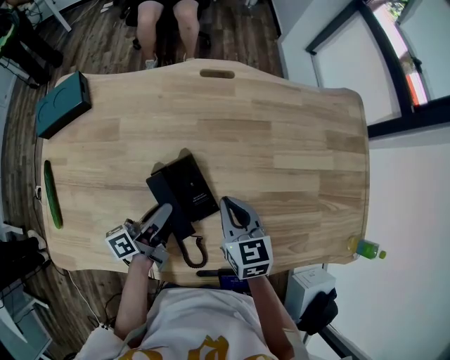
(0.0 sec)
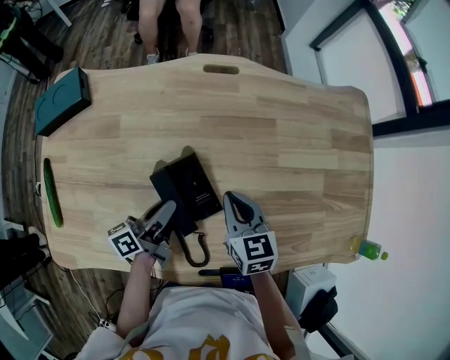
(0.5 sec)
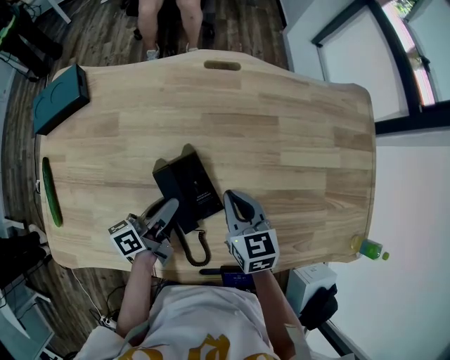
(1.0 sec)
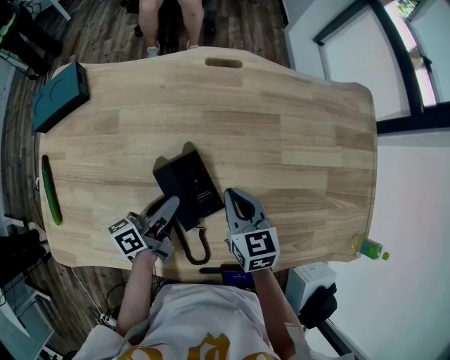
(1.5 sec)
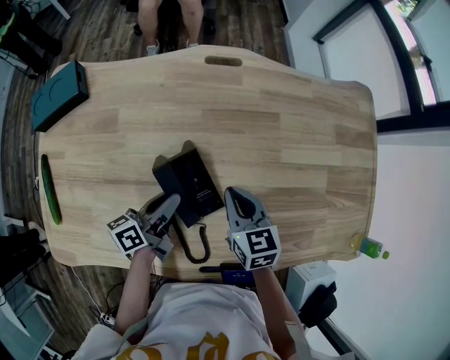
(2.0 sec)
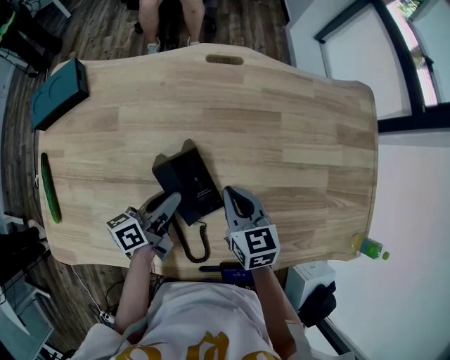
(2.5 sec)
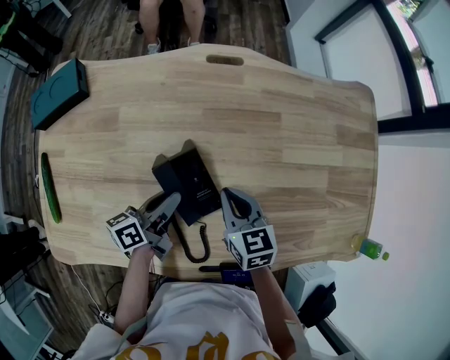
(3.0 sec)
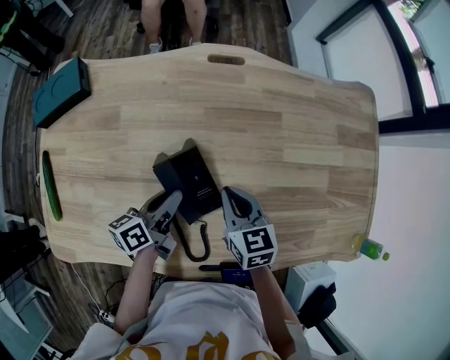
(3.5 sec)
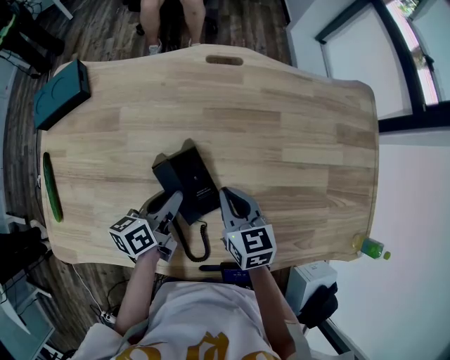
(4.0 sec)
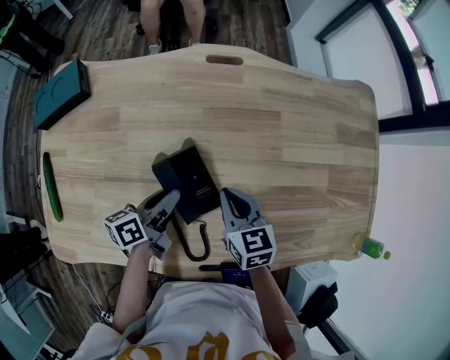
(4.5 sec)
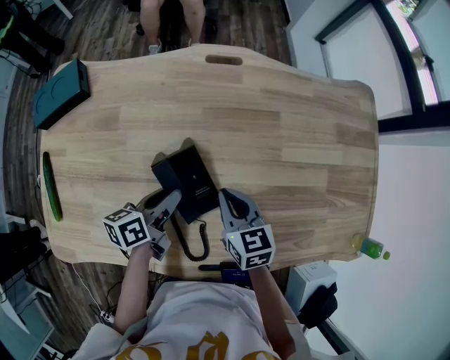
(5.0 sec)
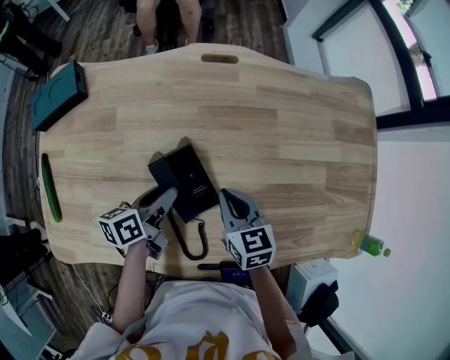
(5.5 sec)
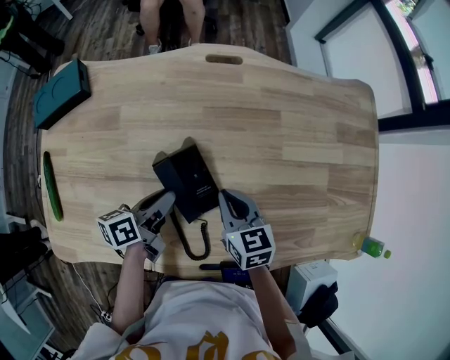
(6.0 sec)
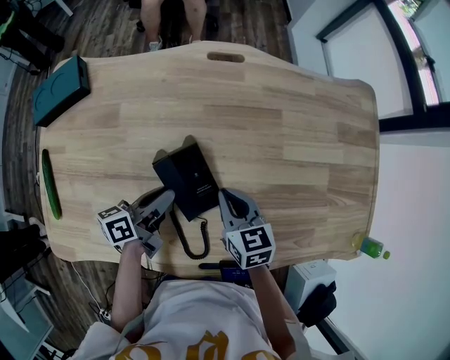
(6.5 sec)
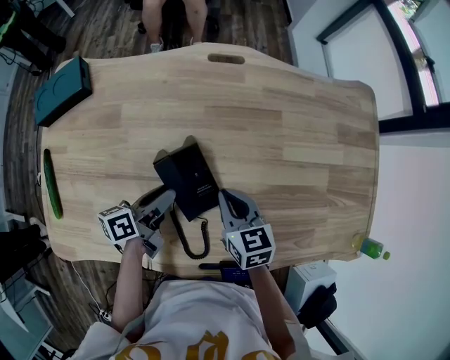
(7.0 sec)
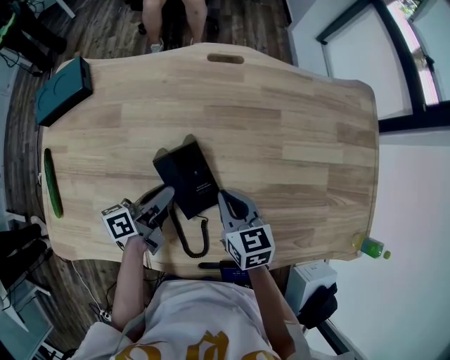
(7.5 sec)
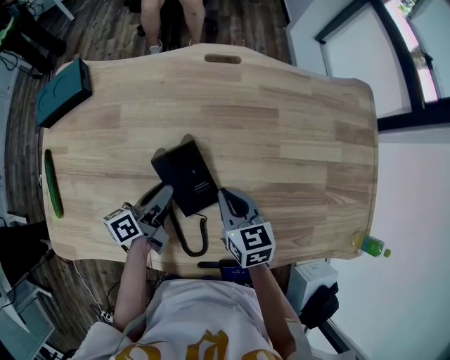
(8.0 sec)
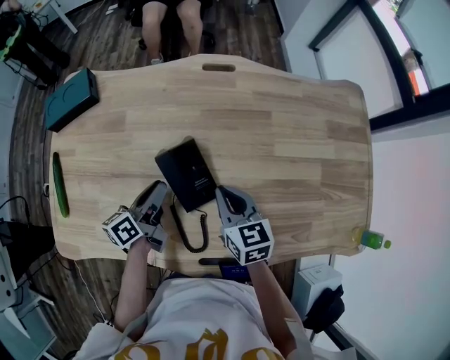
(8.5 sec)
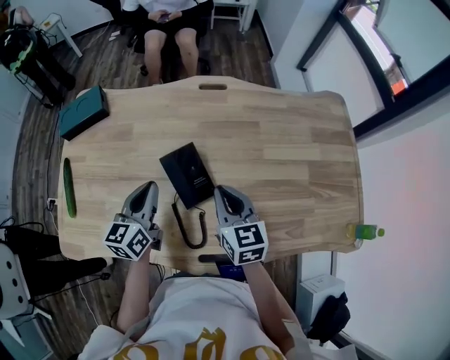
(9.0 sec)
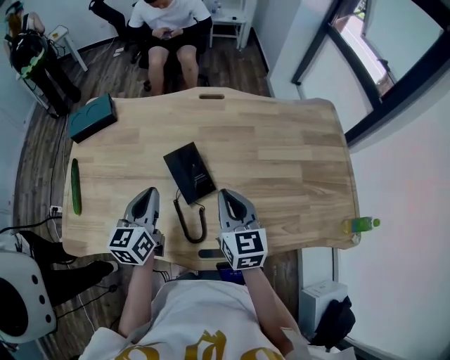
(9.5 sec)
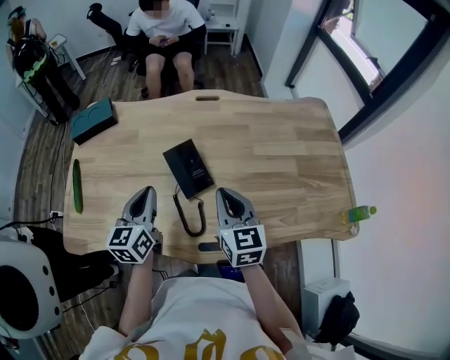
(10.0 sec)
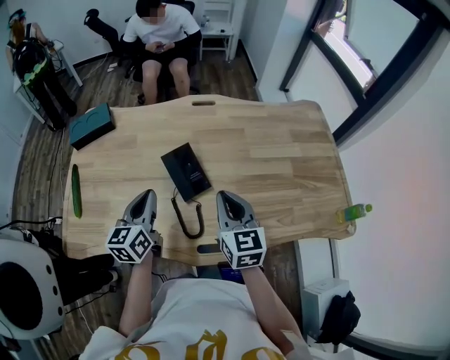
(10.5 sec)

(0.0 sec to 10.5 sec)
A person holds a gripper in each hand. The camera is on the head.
0.0 sec - 2.0 sec: There are only small adjustments of the grippers.
2.0 sec - 8.5 sec: The grippers move only a little.
8.5 sec - 10.5 sec: Both grippers travel together upward and backward, approximately 15 cm. The left gripper changes its angle by some 40 degrees, and closes up. Meanwhile the right gripper rotates approximately 20 degrees.

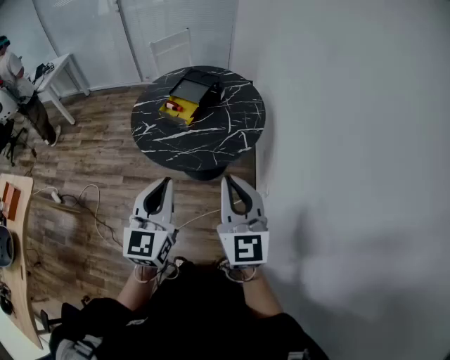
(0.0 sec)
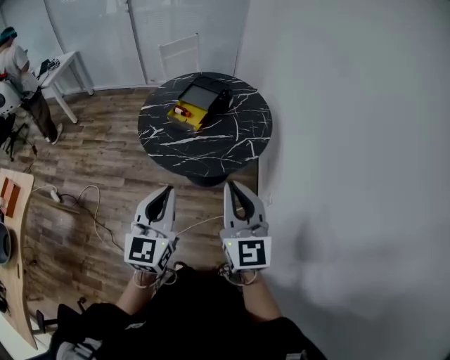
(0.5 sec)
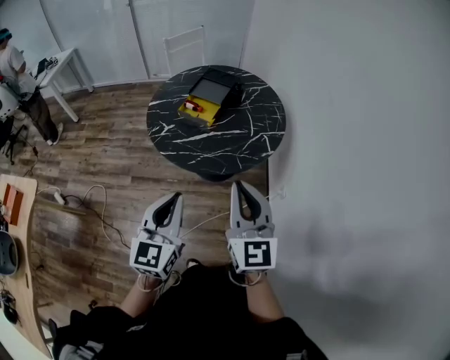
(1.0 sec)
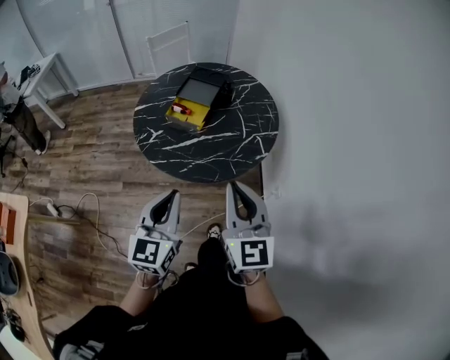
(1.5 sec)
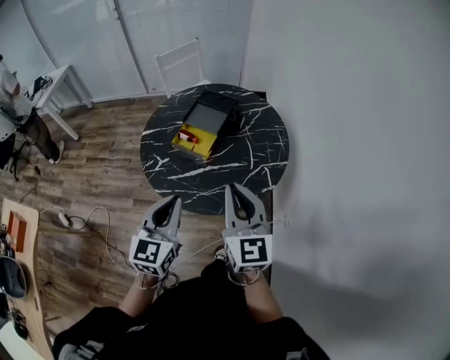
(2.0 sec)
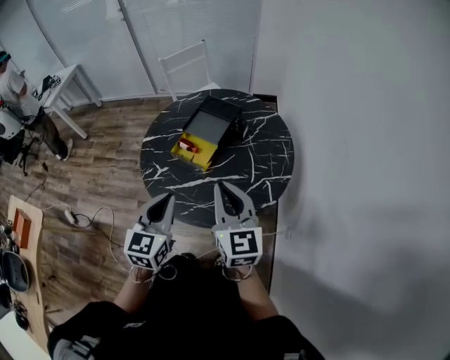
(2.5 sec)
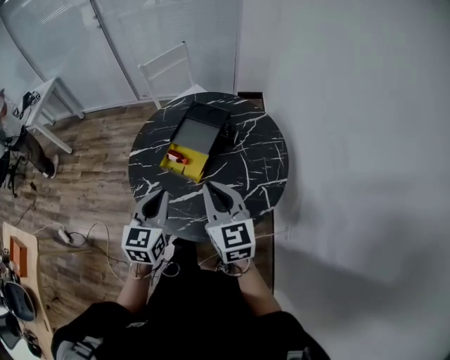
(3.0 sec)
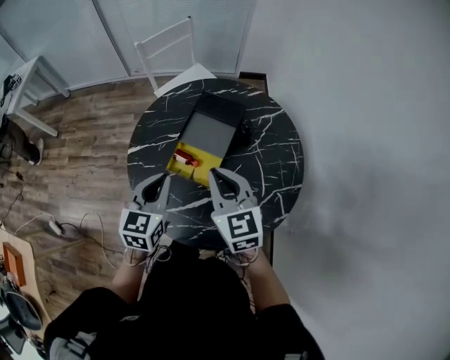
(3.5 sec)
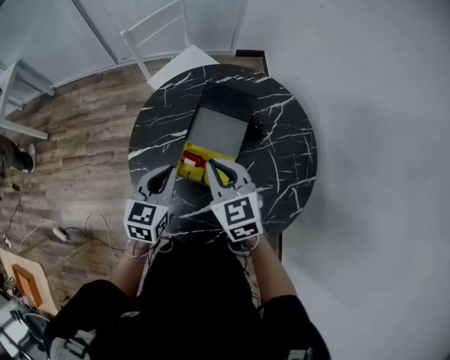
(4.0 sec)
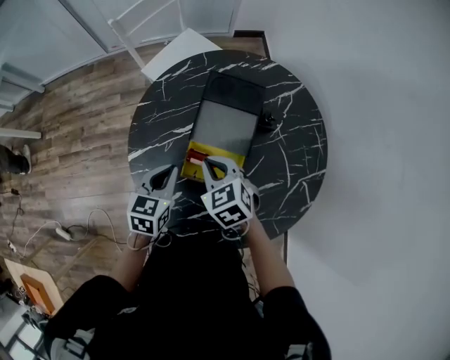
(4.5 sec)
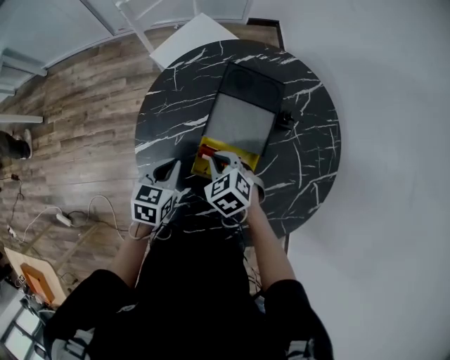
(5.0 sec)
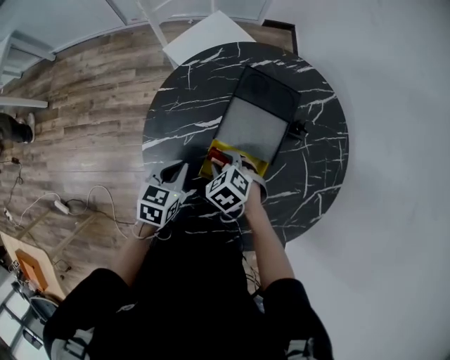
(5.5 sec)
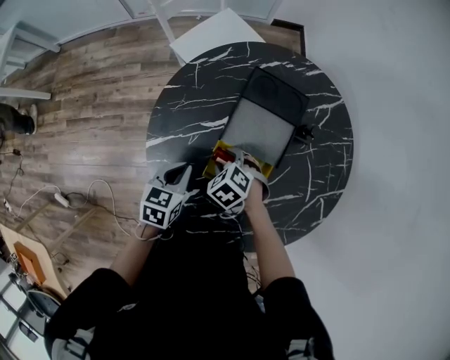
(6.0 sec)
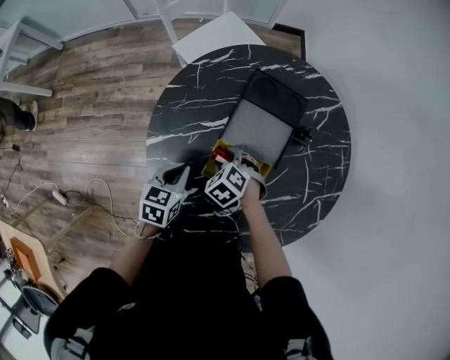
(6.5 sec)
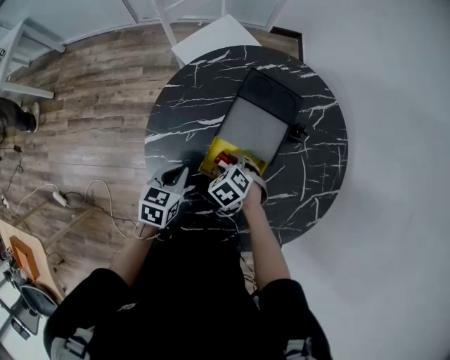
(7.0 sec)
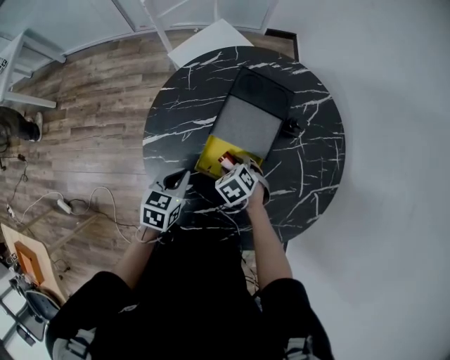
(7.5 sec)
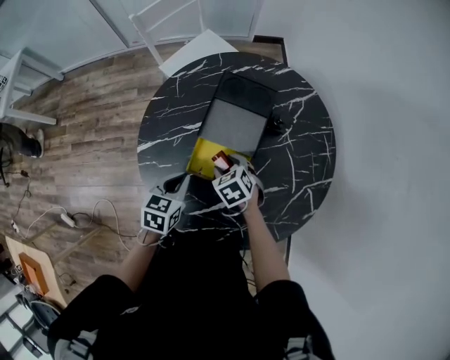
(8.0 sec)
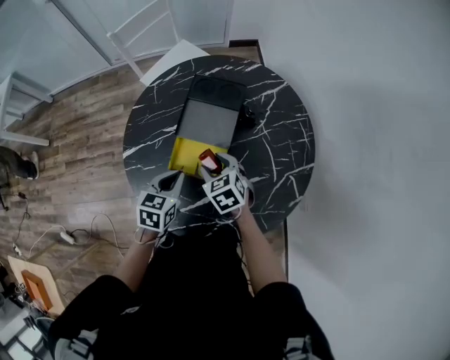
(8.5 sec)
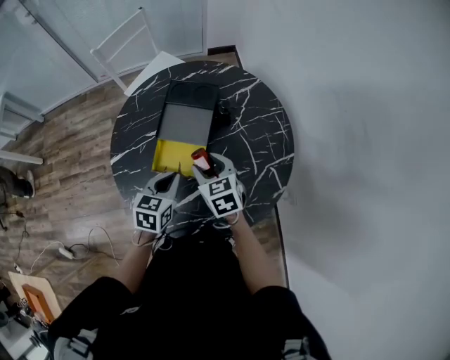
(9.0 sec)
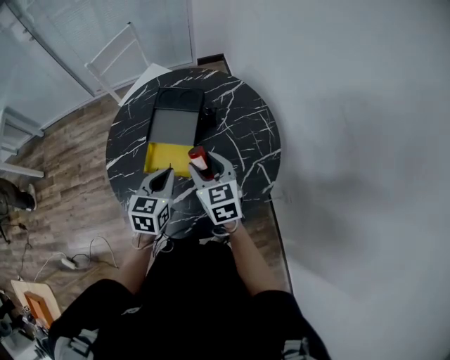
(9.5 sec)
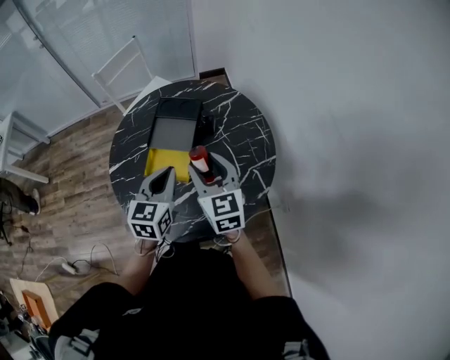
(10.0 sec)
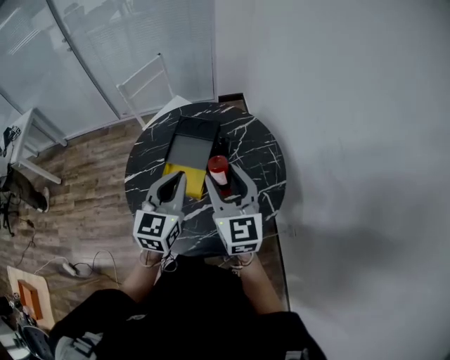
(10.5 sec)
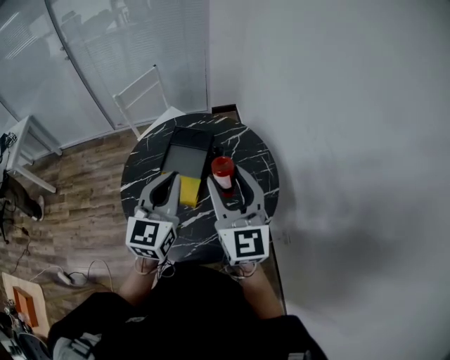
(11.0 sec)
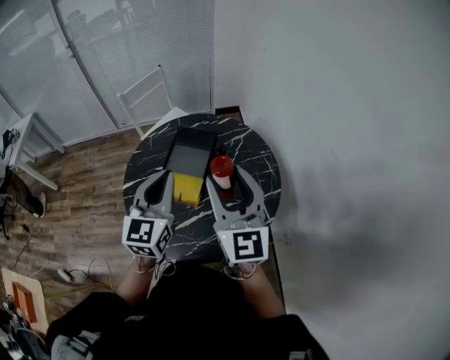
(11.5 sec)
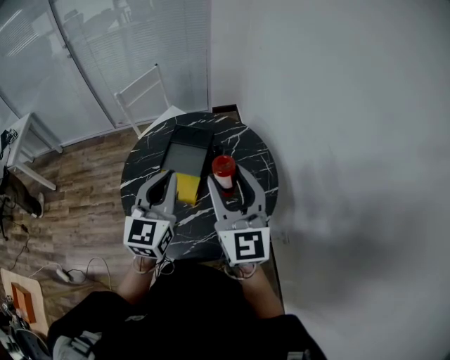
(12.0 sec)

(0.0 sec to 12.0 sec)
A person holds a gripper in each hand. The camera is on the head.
0.0 sec - 2.0 sec: The grippers both shift forward and to the left by about 20 cm.
2.0 sec - 4.0 sec: The left gripper travels forward and downward by approximately 40 cm, and rotates roughly 20 degrees. Meanwhile the right gripper shifts approximately 40 cm forward, downward and to the left, and changes its angle by roughly 30 degrees.
4.0 sec - 6.0 sec: The left gripper travels downward and to the left by some 15 cm, and turns by approximately 20 degrees, while the right gripper shifts some 25 cm downward, points its fingers about 40 degrees further downward, and opens up.
6.0 sec - 8.0 sec: Both grippers travel together to the right, roughly 5 cm.
8.0 sec - 10.0 sec: The two grippers go about 30 cm upward and to the right. The left gripper rotates approximately 30 degrees; the right gripper tilts its fingers about 50 degrees upward.
10.0 sec - 12.0 sec: The two grippers go roughly 15 cm upward. The left gripper rotates about 20 degrees. Meanwhile the right gripper rotates some 20 degrees.

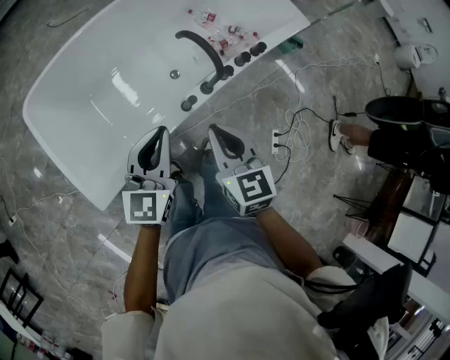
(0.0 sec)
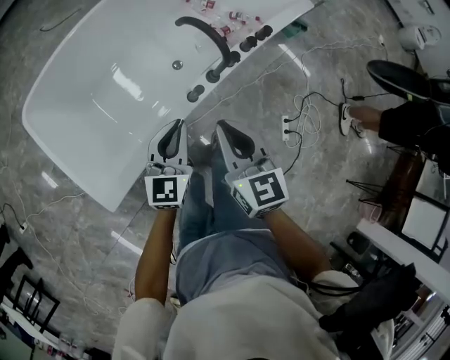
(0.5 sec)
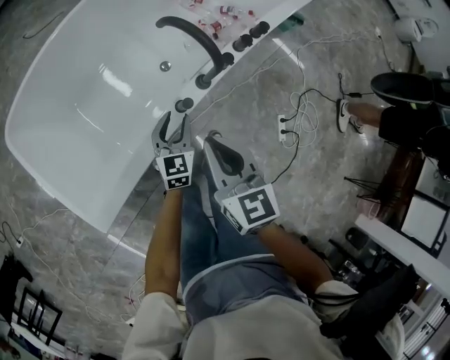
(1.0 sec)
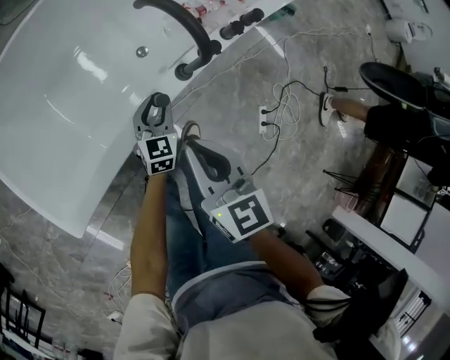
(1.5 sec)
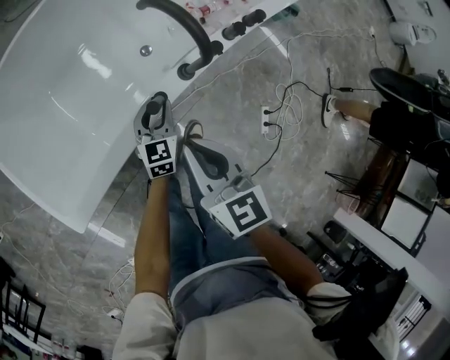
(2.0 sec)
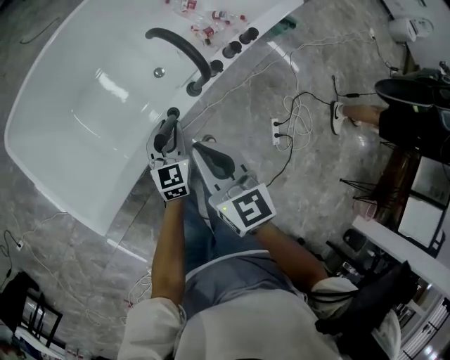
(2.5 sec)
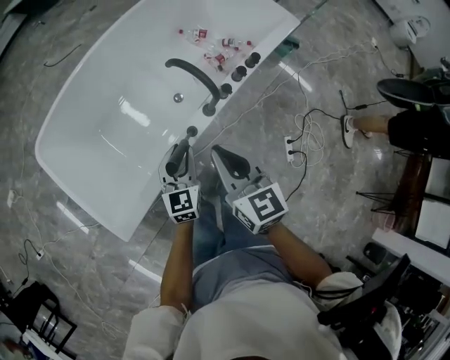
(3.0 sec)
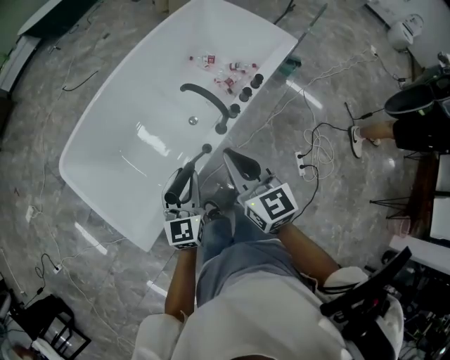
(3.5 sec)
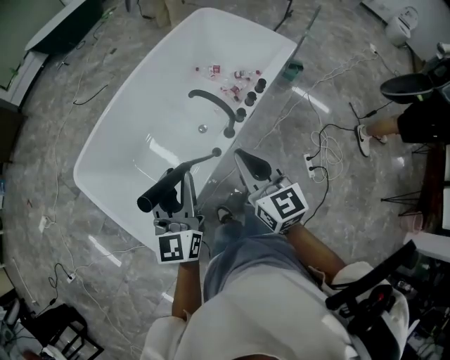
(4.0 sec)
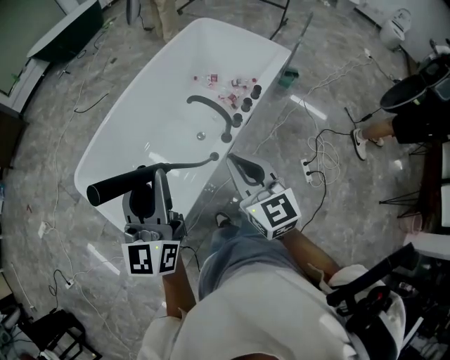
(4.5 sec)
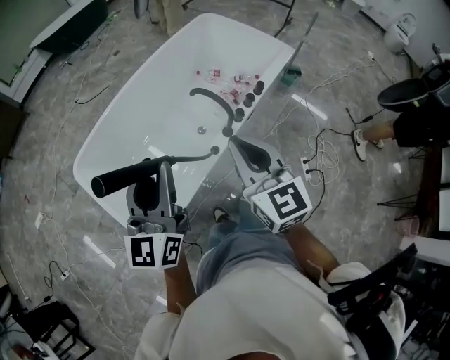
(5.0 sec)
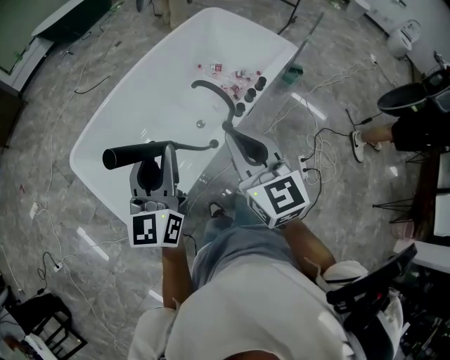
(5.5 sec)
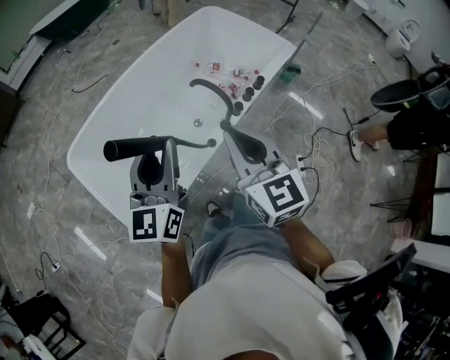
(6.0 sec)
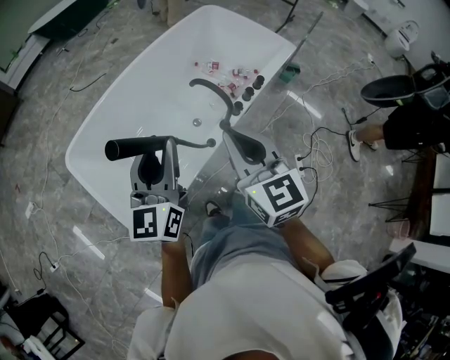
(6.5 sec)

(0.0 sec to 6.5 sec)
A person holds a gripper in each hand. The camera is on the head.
0.0 sec - 2.0 sec: The left gripper shifts some 50 cm downward, and opens. The right gripper goes roughly 25 cm downward.
2.0 sec - 4.5 sec: The right gripper is displaced upward by approximately 50 cm, while the left gripper heads upward, covering roughly 80 cm, and points its fingers some 30 degrees further upward.
4.5 sec - 6.5 sec: The left gripper travels downward by some 5 cm, while the right gripper shifts by roughly 5 cm.
